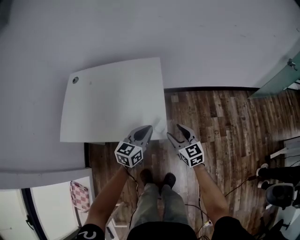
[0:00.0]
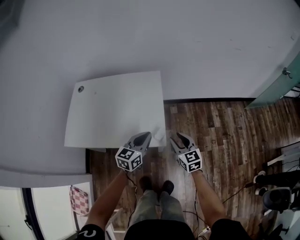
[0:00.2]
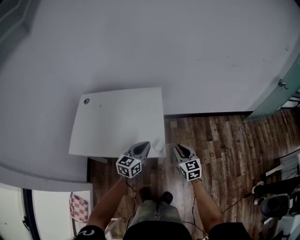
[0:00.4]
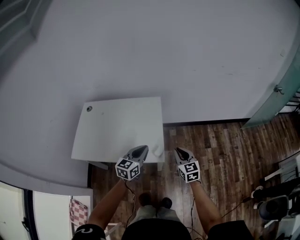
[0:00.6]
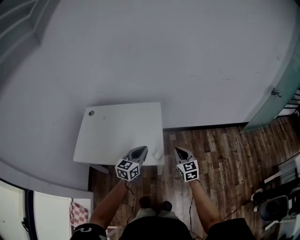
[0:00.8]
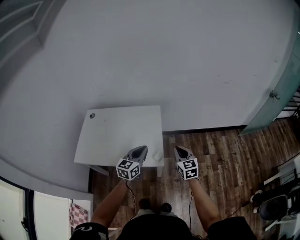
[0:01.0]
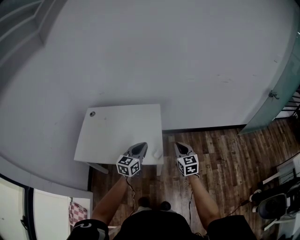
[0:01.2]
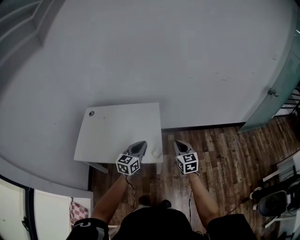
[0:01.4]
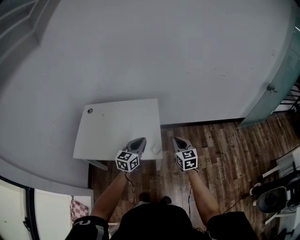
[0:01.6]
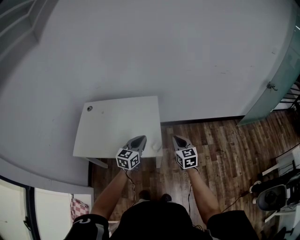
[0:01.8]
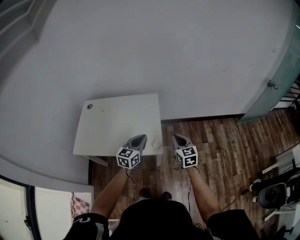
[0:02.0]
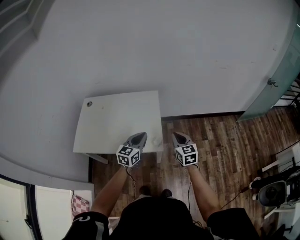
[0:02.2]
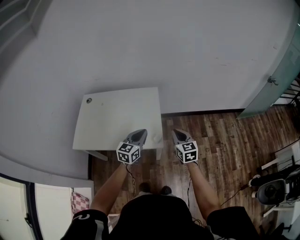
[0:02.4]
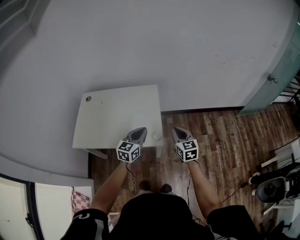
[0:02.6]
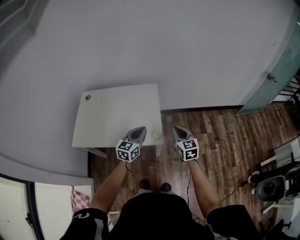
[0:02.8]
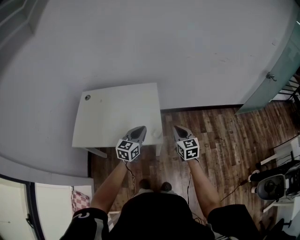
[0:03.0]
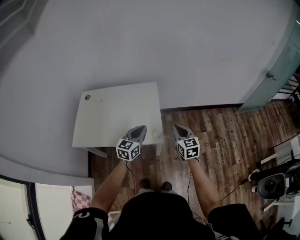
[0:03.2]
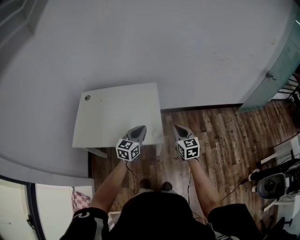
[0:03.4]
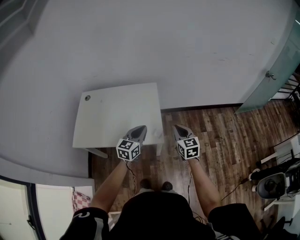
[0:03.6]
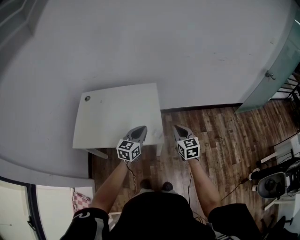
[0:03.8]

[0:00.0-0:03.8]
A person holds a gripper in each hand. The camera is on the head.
0:00.0 to 0:01.2: The two grippers go roughly 15 cm upward. The right gripper closes its fingers.
0:01.2 to 0:02.6: The grippers move only a little.
0:02.6 to 0:03.8: Both grippers stay put.

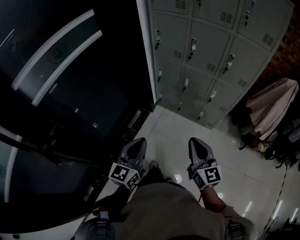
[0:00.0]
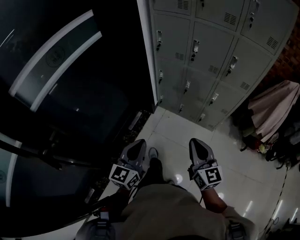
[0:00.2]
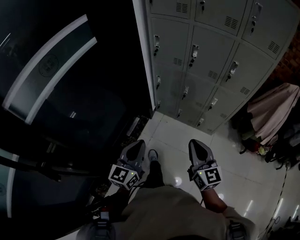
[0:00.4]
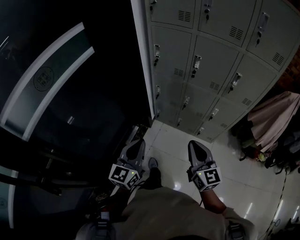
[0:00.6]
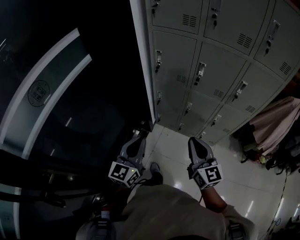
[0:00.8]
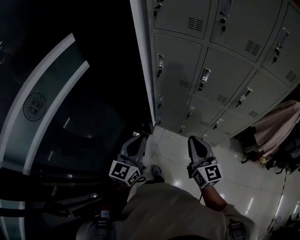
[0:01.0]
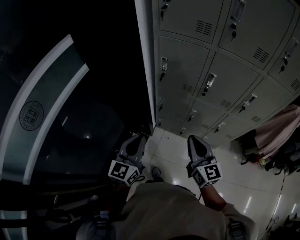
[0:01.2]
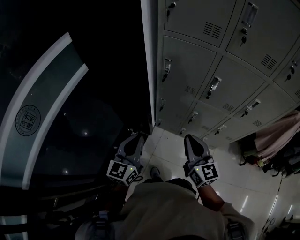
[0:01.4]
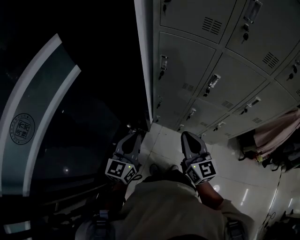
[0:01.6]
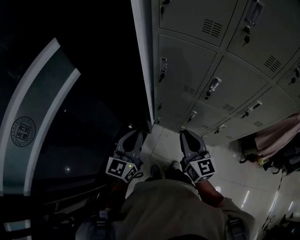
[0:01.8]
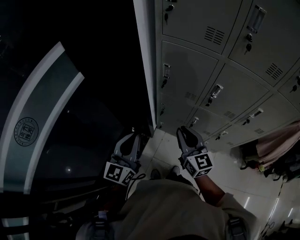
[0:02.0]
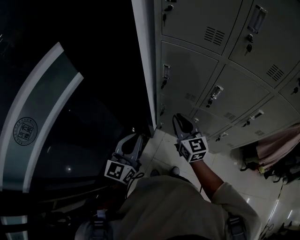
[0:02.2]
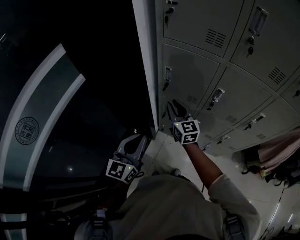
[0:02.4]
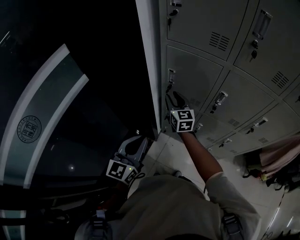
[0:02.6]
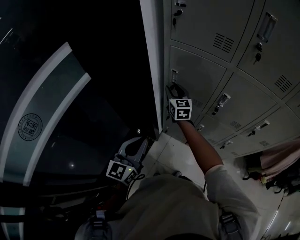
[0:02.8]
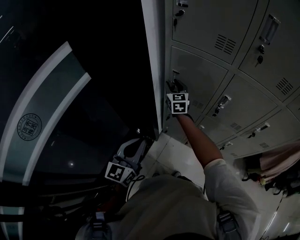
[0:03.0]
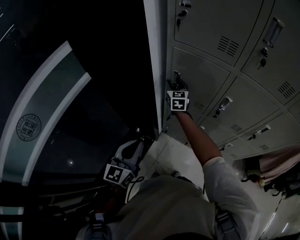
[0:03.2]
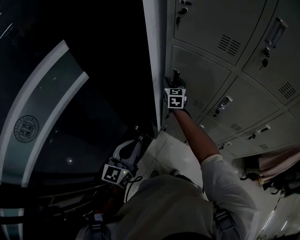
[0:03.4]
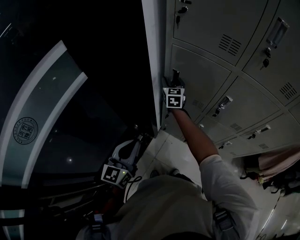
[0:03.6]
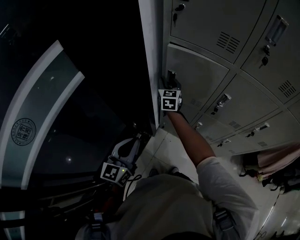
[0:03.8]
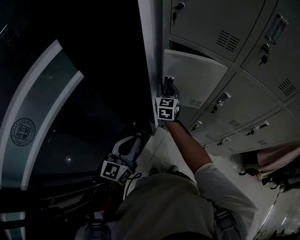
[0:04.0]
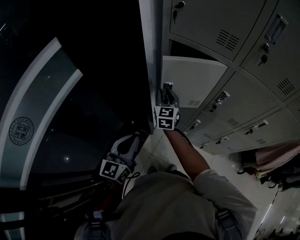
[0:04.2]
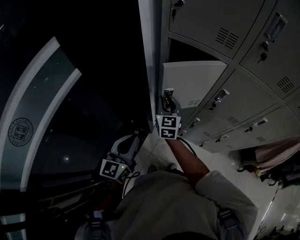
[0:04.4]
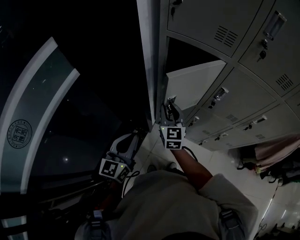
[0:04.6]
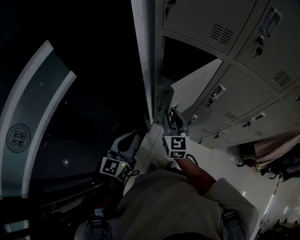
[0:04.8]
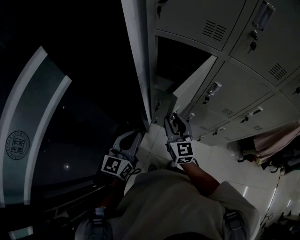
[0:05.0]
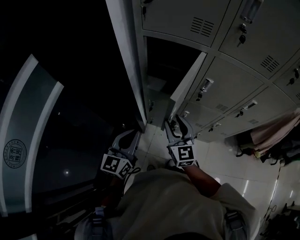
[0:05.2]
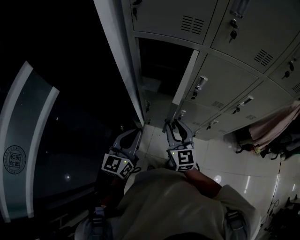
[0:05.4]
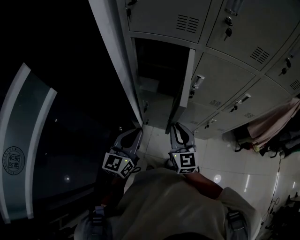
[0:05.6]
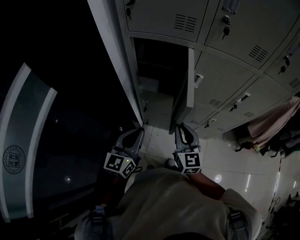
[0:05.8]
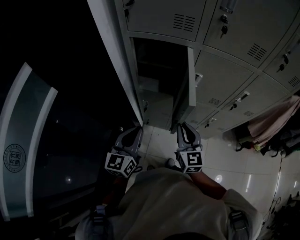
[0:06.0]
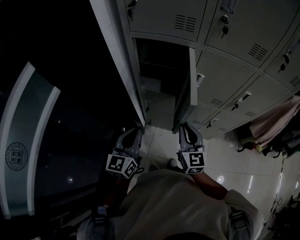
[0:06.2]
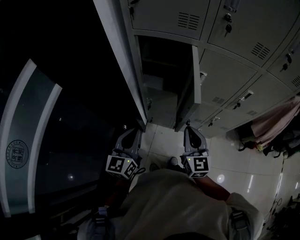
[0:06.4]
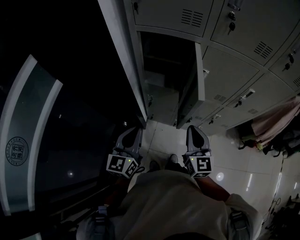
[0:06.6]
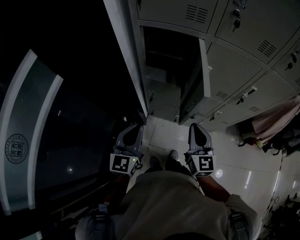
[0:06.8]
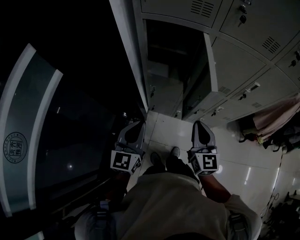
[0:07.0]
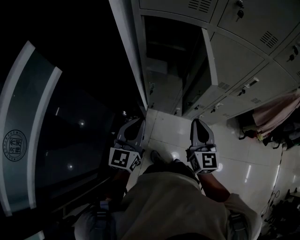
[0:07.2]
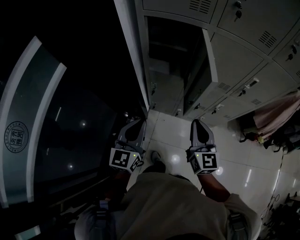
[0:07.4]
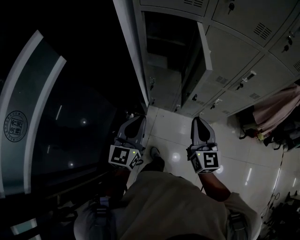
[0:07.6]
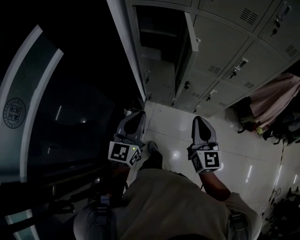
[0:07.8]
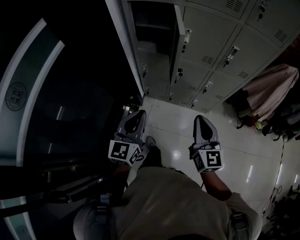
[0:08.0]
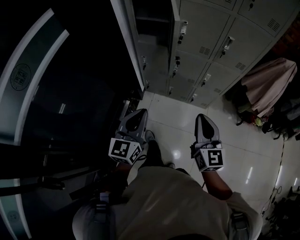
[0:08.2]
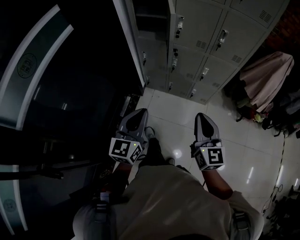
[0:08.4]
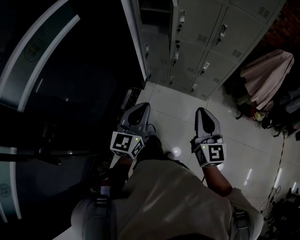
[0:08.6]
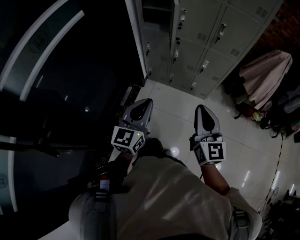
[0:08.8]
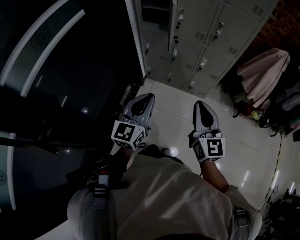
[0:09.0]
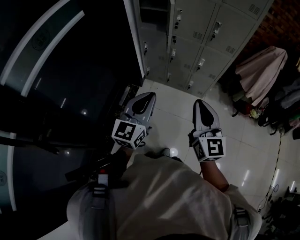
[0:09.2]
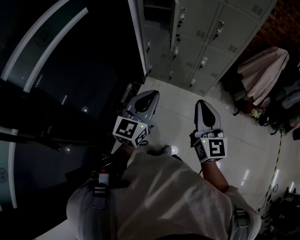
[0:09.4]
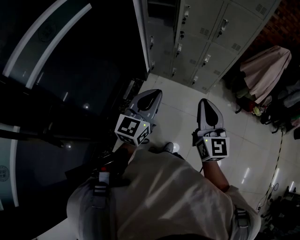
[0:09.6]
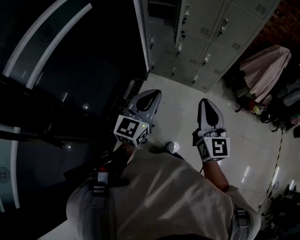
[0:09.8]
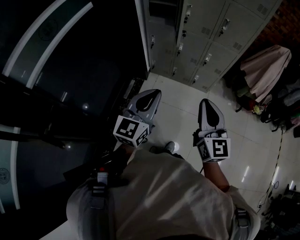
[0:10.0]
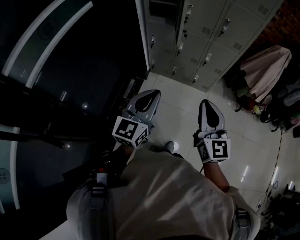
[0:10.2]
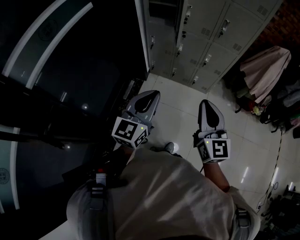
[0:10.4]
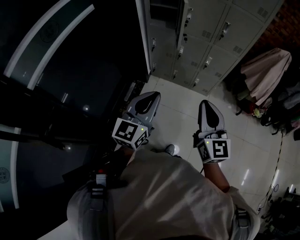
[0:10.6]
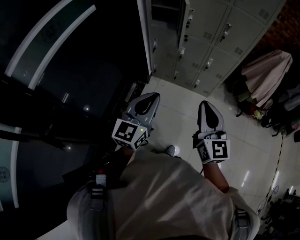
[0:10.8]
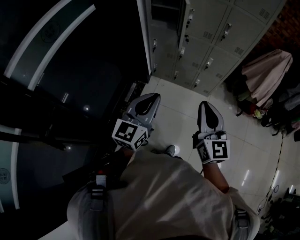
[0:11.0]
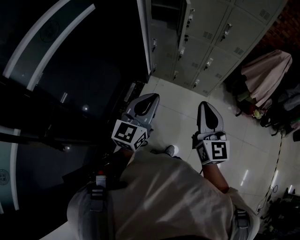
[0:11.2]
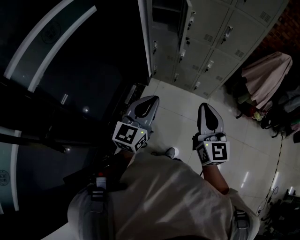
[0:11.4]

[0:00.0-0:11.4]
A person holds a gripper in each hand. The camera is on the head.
0:00.0 to 0:01.4: Both grippers are carried forward, roughly 40 cm.
0:01.4 to 0:02.8: The right gripper moves forward, roughly 35 cm, and opens up. The left gripper moves forward, approximately 5 cm, and opens up.
0:02.8 to 0:04.2: The right gripper moves approximately 5 cm forward and comes back.
0:04.2 to 0:05.6: The right gripper is displaced backward and to the right by roughly 25 cm. The left gripper shifts approximately 10 cm to the right.
0:05.6 to 0:07.2: The right gripper travels backward by about 5 cm. Meanwhile the left gripper shifts by some 5 cm.
0:07.2 to 0:08.6: Both grippers travel together backward and to the right, approximately 40 cm.
0:08.6 to 0:10.0: Both grippers move backward and upward, about 10 cm.
0:10.0 to 0:11.4: The grippers move only a little.

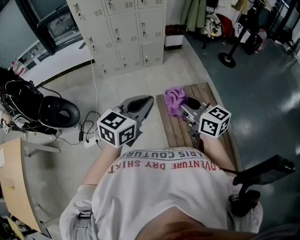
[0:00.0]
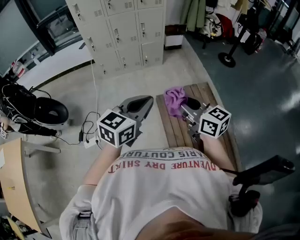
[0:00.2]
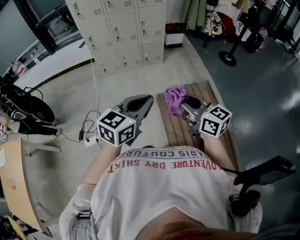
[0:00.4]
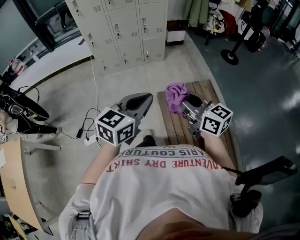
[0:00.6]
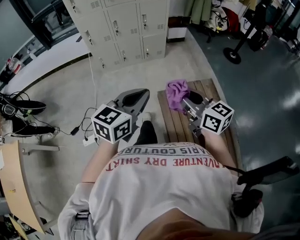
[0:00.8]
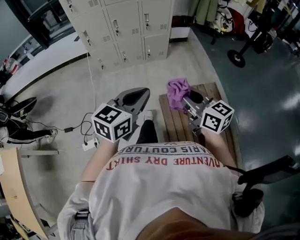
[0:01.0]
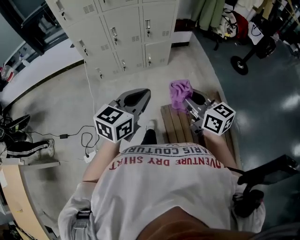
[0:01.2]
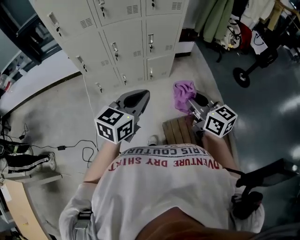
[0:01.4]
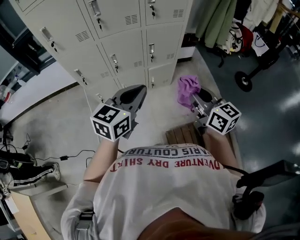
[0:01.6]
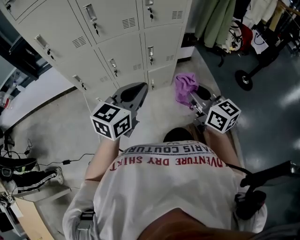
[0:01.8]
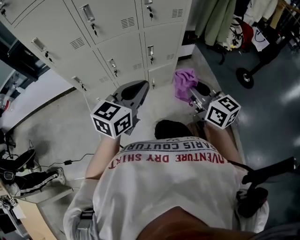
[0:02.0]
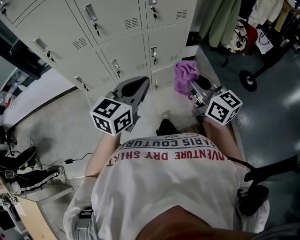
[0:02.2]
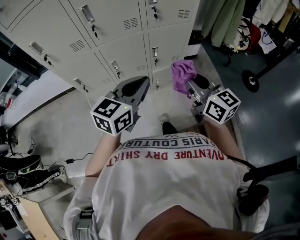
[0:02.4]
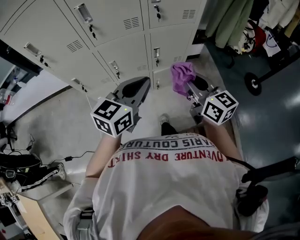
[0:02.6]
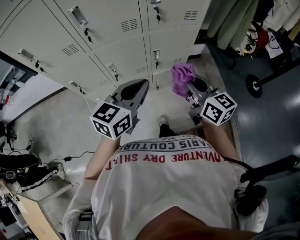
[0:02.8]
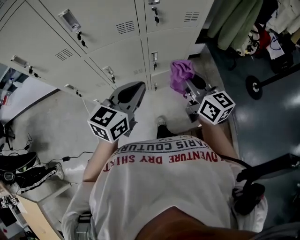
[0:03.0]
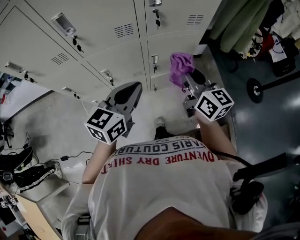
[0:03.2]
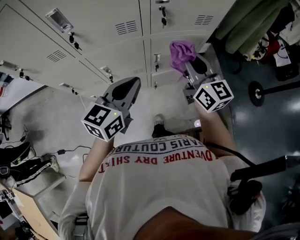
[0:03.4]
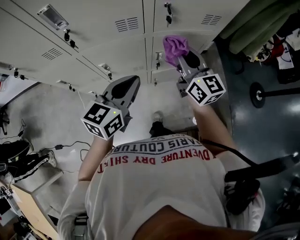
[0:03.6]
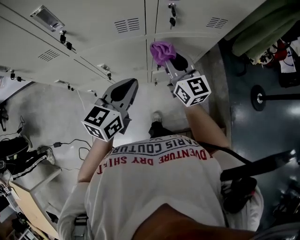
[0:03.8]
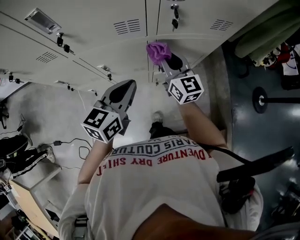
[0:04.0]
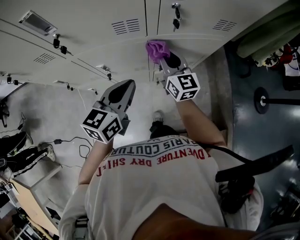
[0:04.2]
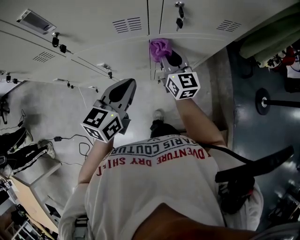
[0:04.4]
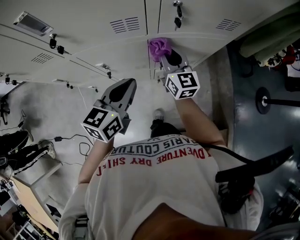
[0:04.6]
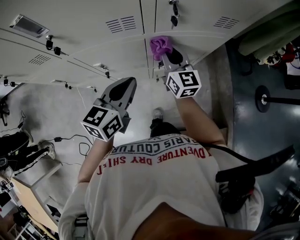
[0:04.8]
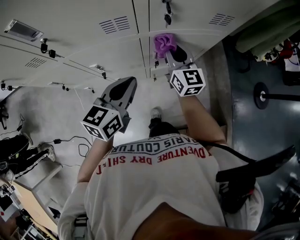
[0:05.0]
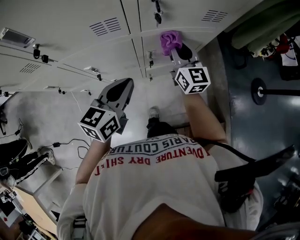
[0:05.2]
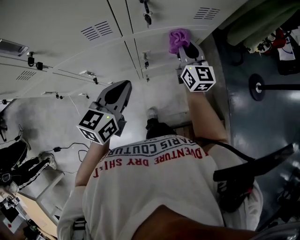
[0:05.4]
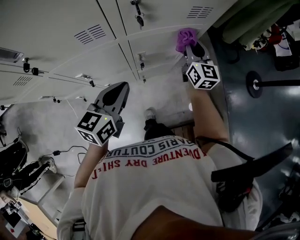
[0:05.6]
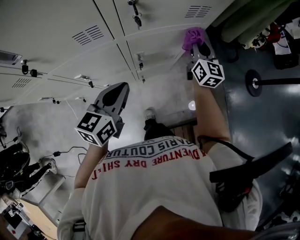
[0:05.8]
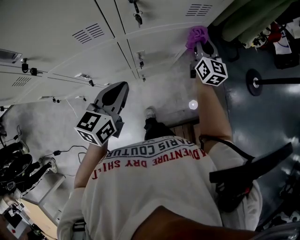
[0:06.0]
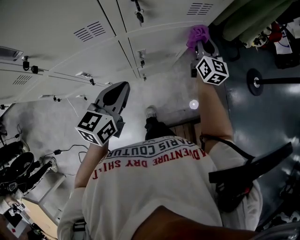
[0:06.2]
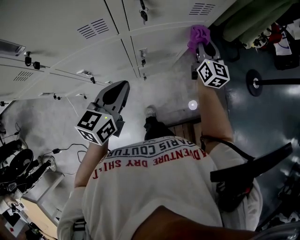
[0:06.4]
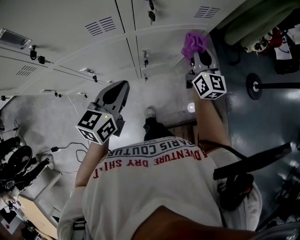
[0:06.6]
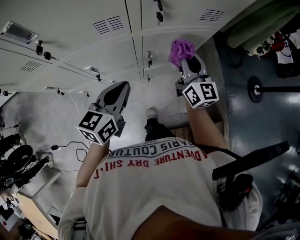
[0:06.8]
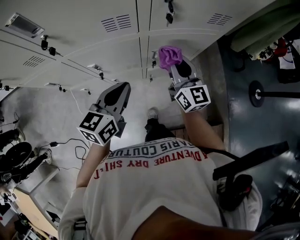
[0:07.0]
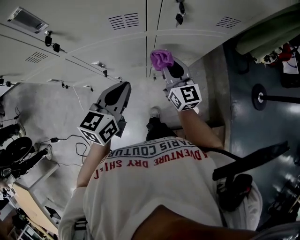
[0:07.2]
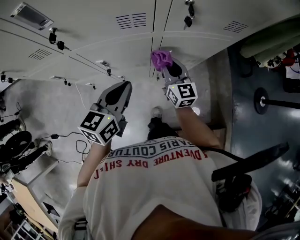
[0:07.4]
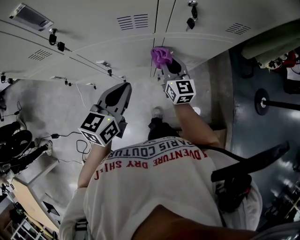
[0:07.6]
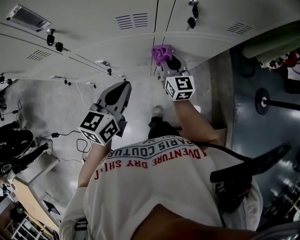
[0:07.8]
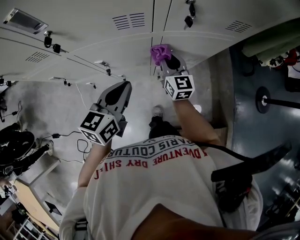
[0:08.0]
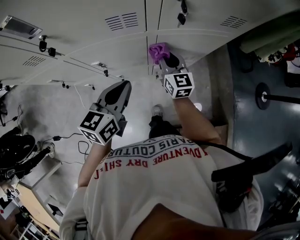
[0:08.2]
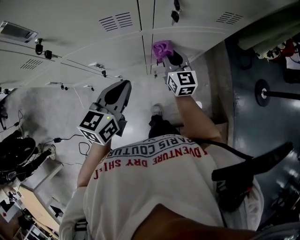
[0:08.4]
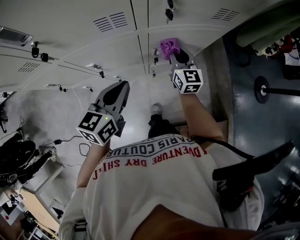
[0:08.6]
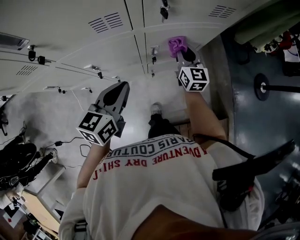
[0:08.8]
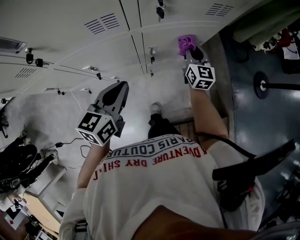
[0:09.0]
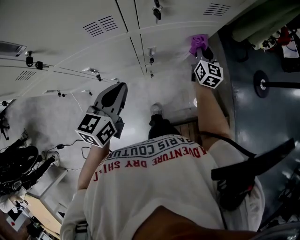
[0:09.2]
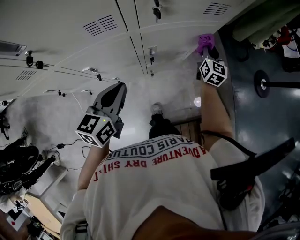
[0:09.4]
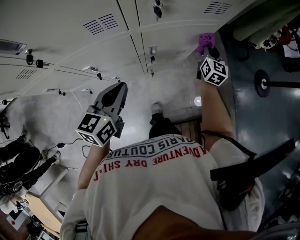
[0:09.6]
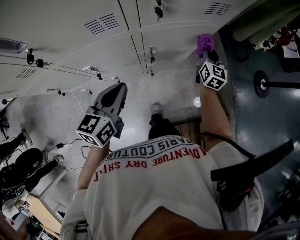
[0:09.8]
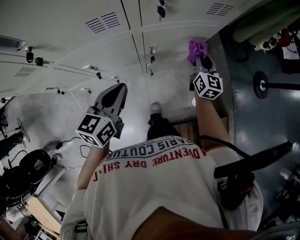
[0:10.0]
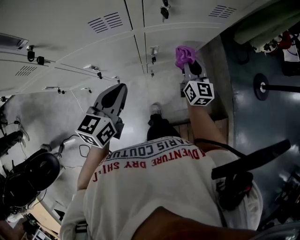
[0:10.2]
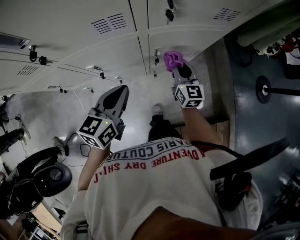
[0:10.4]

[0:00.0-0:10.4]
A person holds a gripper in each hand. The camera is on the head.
0:00.0 to 0:01.4: The pair of grippers is taken forward, about 50 cm.
0:01.4 to 0:03.0: Both grippers travel together forward, about 35 cm.
0:03.0 to 0:04.4: The right gripper travels forward, downward and to the left by approximately 30 cm. Meanwhile the left gripper goes roughly 15 cm forward and downward.
0:04.4 to 0:06.0: The right gripper goes approximately 25 cm to the right, and rotates some 20 degrees, while the left gripper shifts about 5 cm to the right.
0:06.0 to 0:07.4: The right gripper travels to the left and backward by about 25 cm, and swivels some 20 degrees; the left gripper moves to the left, roughly 10 cm.
0:07.4 to 0:09.0: The right gripper travels to the right and forward by about 20 cm.
0:09.0 to 0:10.4: The right gripper travels backward and to the left by some 10 cm.
